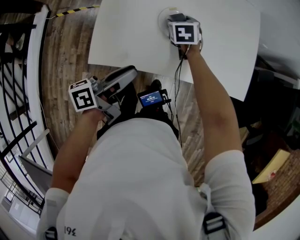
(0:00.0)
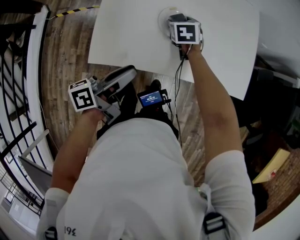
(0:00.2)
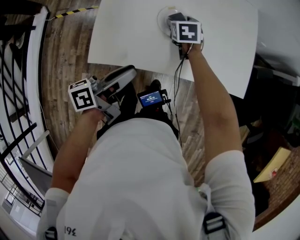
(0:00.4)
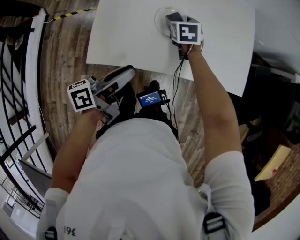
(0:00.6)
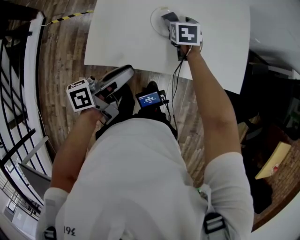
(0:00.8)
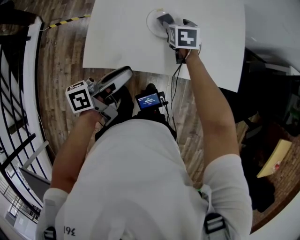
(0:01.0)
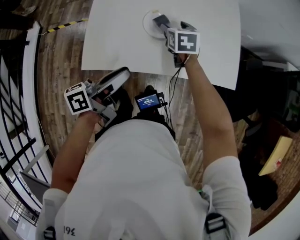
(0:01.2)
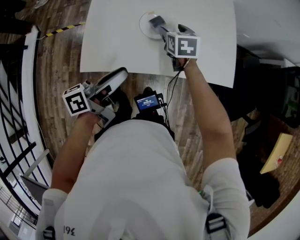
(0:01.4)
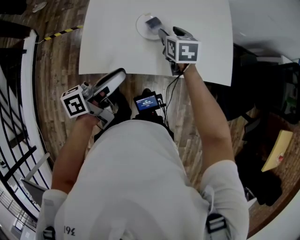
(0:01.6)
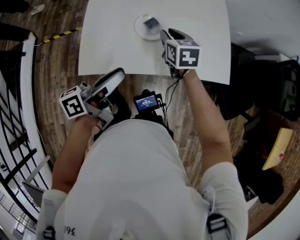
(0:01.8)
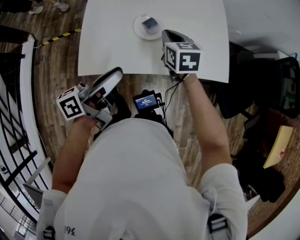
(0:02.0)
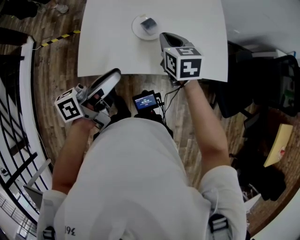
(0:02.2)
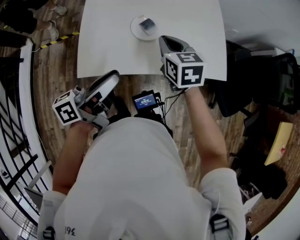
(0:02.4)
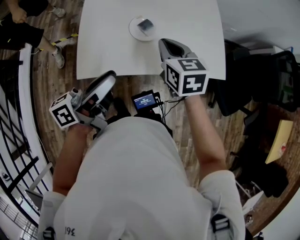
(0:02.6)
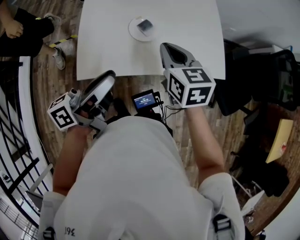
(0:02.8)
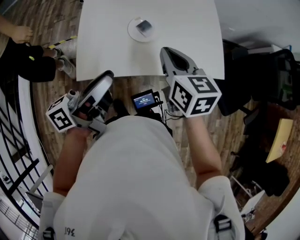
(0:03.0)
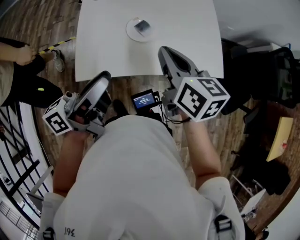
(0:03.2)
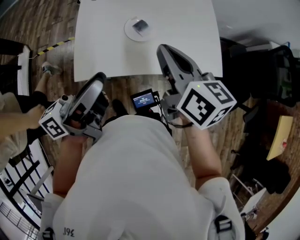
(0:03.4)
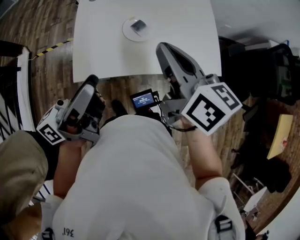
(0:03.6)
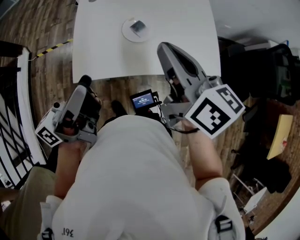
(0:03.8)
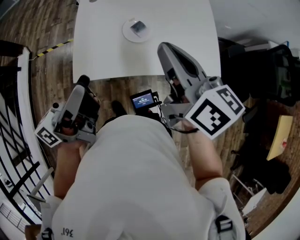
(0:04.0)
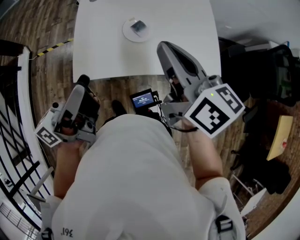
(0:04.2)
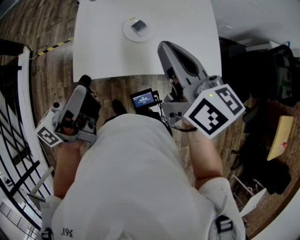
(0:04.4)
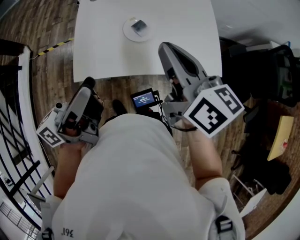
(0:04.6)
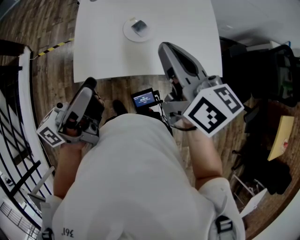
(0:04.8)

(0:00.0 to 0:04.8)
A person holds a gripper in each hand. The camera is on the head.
0:00.0 - 0:01.6: The right gripper moves upward, to the right and backward, about 15 cm; the left gripper moves approximately 5 cm.
0:01.6 - 0:03.2: The right gripper heads upward and backward, covering approximately 20 cm, swivels about 30 degrees, and closes up, while the left gripper shifts about 10 cm upward.
0:03.2 - 0:04.8: The right gripper is displaced upward by approximately 5 cm.

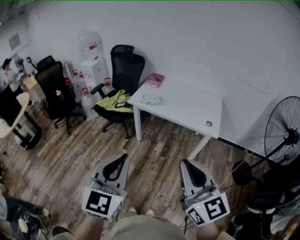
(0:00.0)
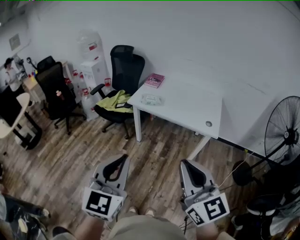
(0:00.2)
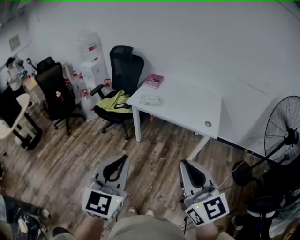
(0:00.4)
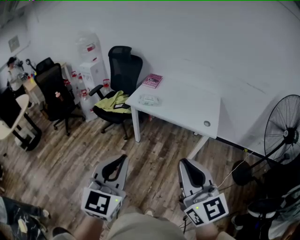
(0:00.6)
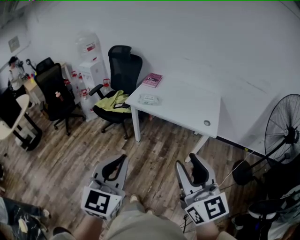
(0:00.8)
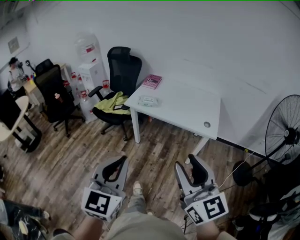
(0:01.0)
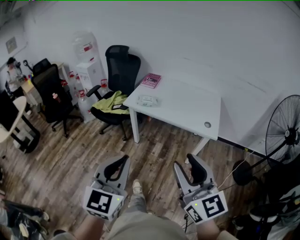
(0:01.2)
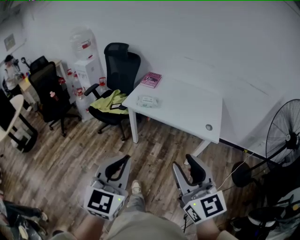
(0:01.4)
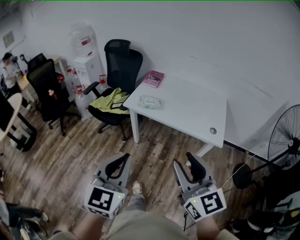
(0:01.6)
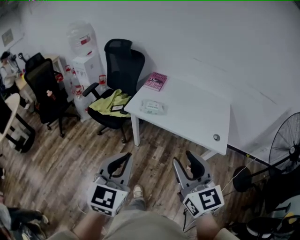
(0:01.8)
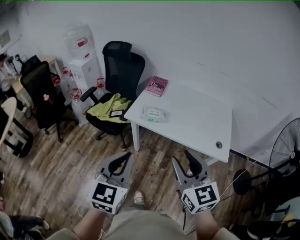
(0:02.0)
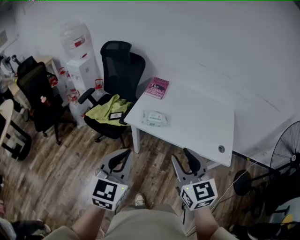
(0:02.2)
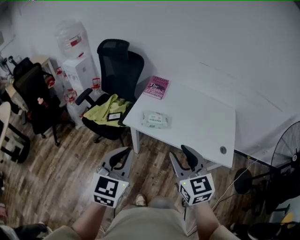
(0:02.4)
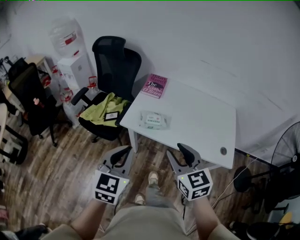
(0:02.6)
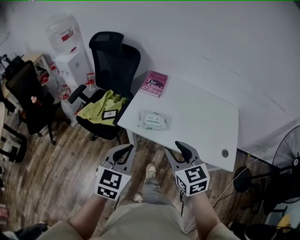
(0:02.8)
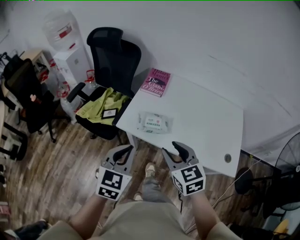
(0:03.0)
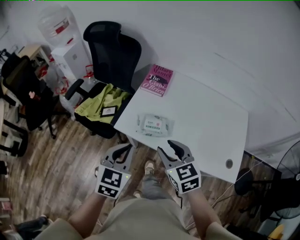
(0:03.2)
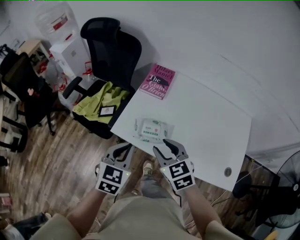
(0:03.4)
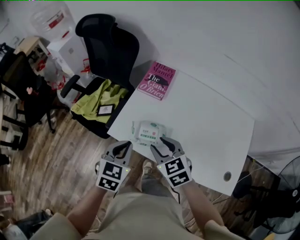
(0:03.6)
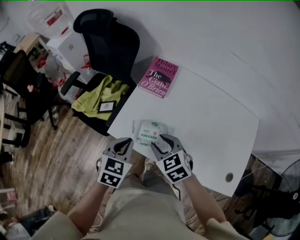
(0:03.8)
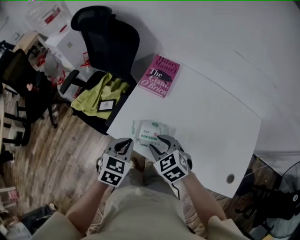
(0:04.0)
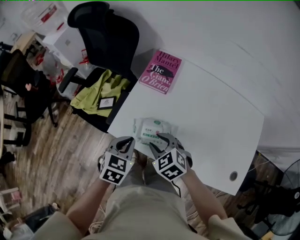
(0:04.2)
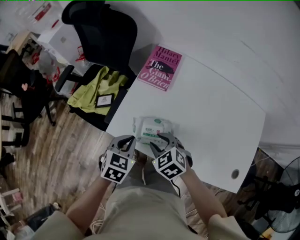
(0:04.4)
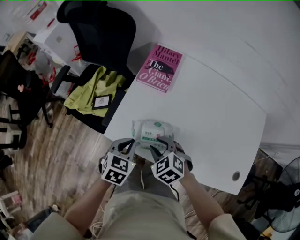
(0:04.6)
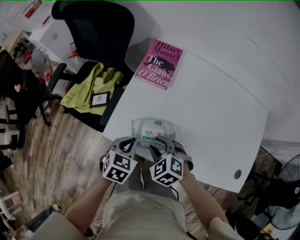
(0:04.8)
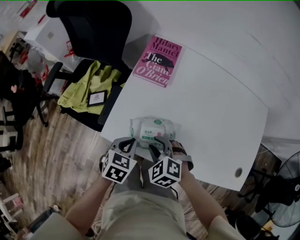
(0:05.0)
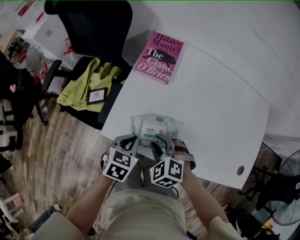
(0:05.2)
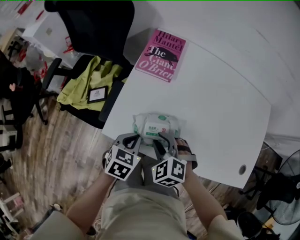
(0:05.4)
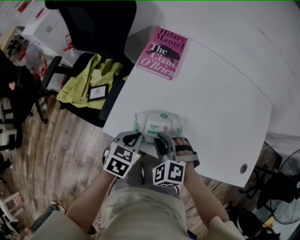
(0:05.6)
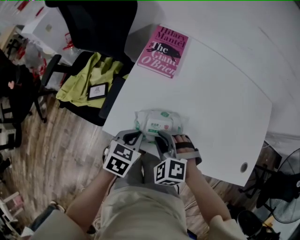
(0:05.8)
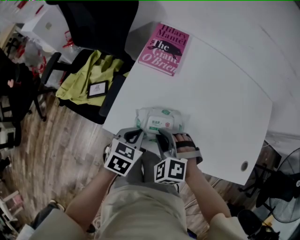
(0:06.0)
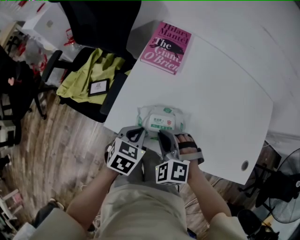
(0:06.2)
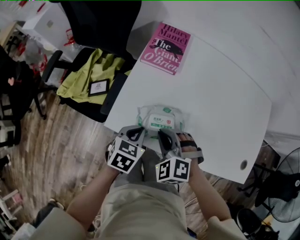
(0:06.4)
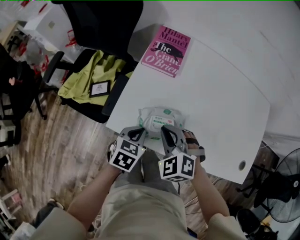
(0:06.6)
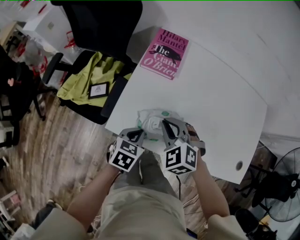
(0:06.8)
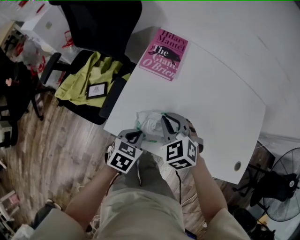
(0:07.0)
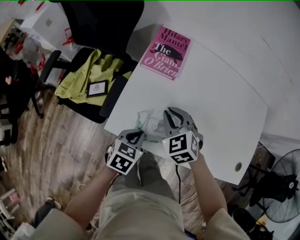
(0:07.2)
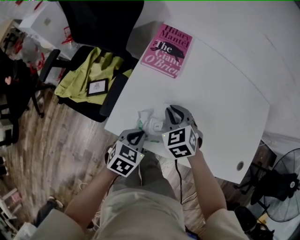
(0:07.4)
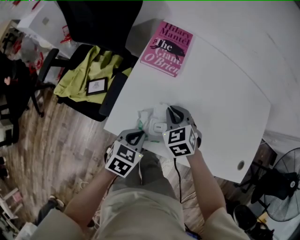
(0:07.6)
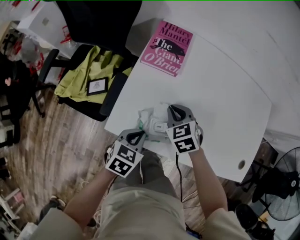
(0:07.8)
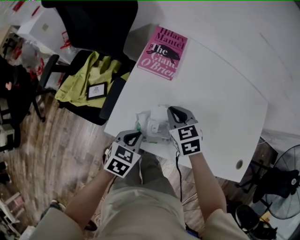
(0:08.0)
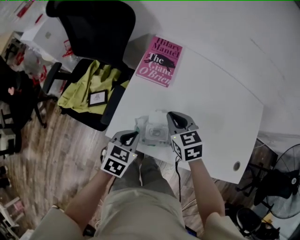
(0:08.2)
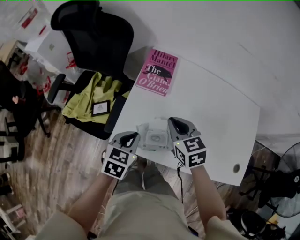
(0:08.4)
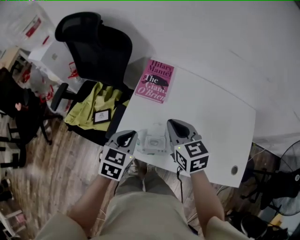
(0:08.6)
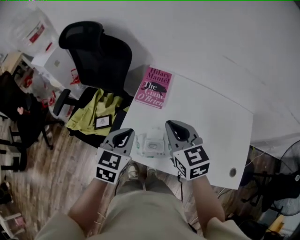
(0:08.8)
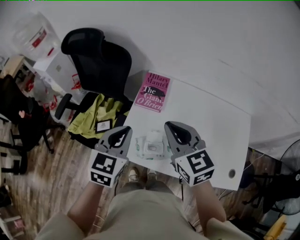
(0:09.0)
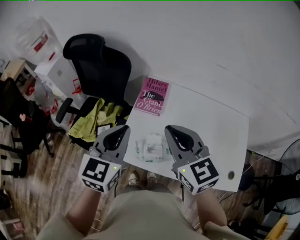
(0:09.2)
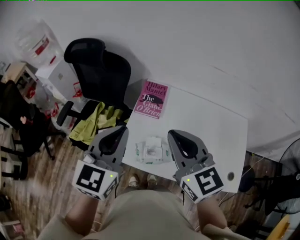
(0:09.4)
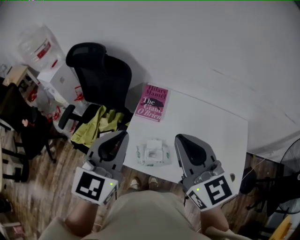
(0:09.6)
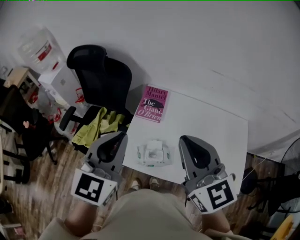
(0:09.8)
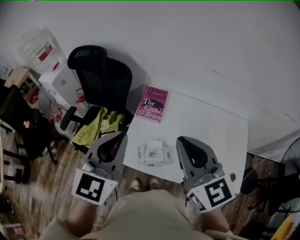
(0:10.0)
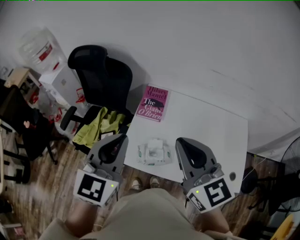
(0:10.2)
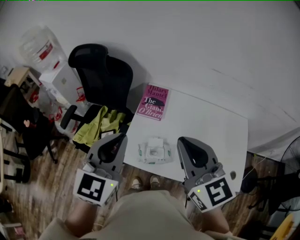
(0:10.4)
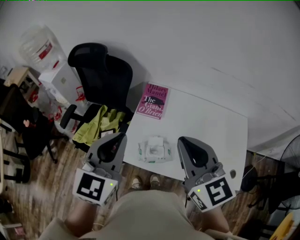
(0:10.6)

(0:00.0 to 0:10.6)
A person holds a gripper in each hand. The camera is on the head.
0:00.0 - 0:01.6: The grippers both shift forward by roughly 15 cm. The right gripper opens its fingers.
0:01.6 - 0:03.0: Both grippers are carried forward, approximately 40 cm. The right gripper travels downward by roughly 20 cm, and swivels approximately 30 degrees.
0:03.0 - 0:04.6: The grippers both shift downward and forward by about 30 cm. The right gripper turns by approximately 40 degrees, while the left gripper rotates roughly 30 degrees.
0:04.6 - 0:06.0: The left gripper heads downward, covering roughly 5 cm; the right gripper swivels roughly 30 degrees.
0:06.0 - 0:07.6: The right gripper moves forward, about 10 cm, and swivels about 40 degrees.
0:07.6 - 0:09.0: The grippers both shift upward by roughly 30 cm. The right gripper points its fingers roughly 30 degrees further upward. Meanwhile the left gripper swivels roughly 30 degrees.
0:09.0 - 0:10.6: The two grippers go roughly 15 cm upward and backward.

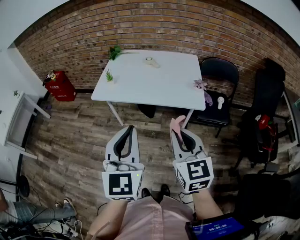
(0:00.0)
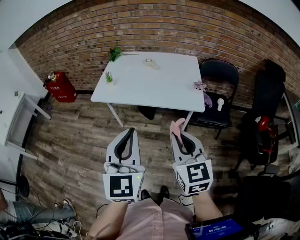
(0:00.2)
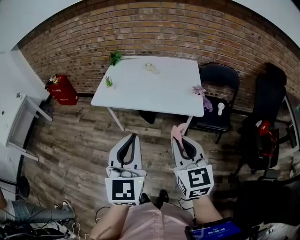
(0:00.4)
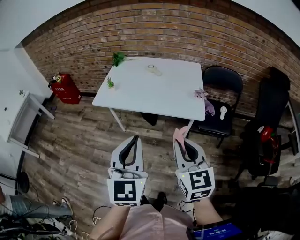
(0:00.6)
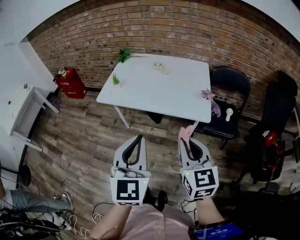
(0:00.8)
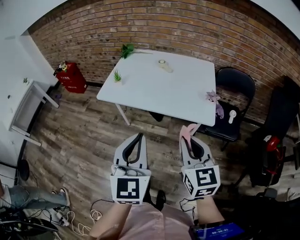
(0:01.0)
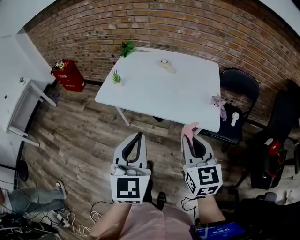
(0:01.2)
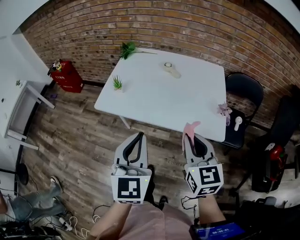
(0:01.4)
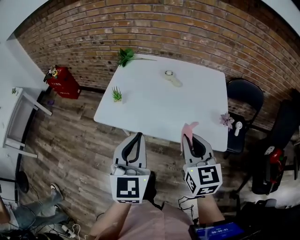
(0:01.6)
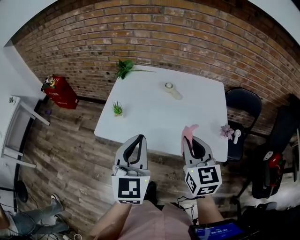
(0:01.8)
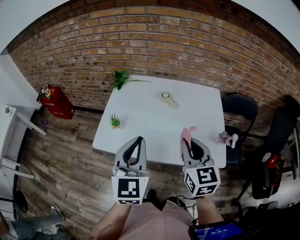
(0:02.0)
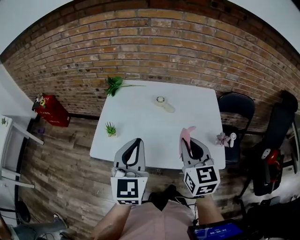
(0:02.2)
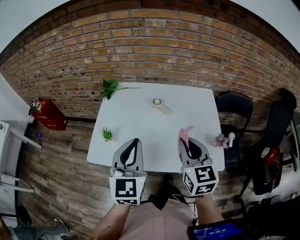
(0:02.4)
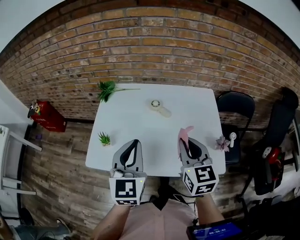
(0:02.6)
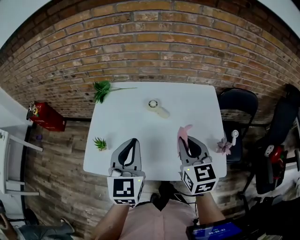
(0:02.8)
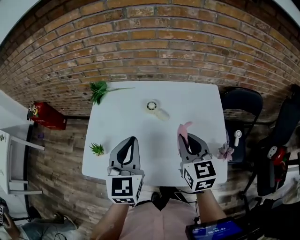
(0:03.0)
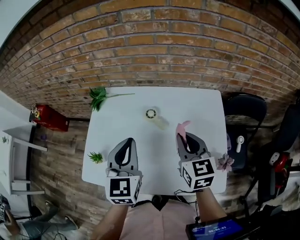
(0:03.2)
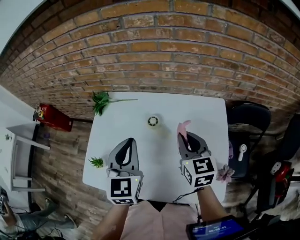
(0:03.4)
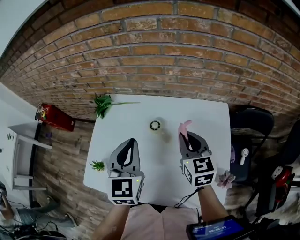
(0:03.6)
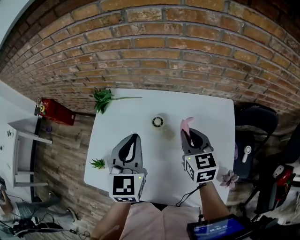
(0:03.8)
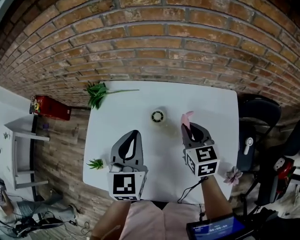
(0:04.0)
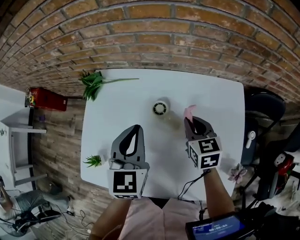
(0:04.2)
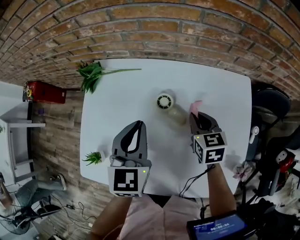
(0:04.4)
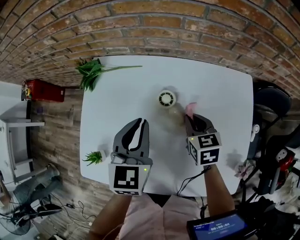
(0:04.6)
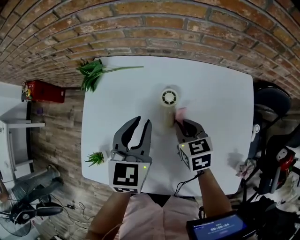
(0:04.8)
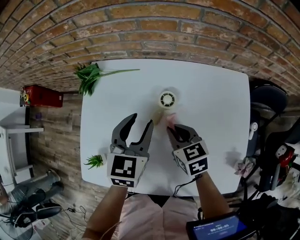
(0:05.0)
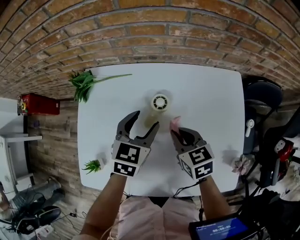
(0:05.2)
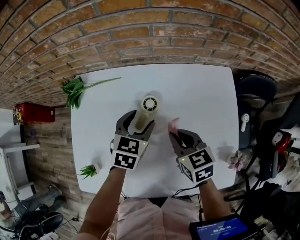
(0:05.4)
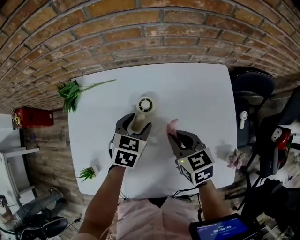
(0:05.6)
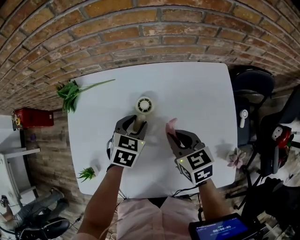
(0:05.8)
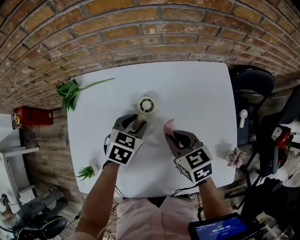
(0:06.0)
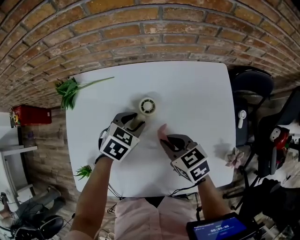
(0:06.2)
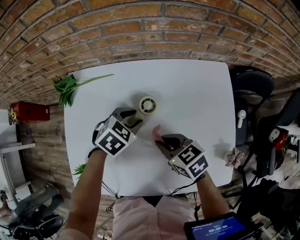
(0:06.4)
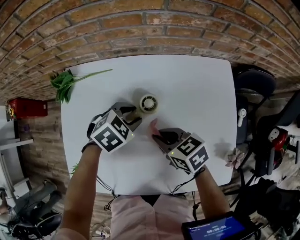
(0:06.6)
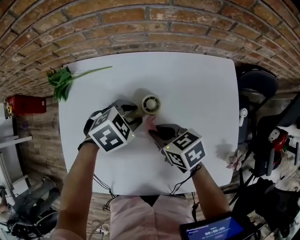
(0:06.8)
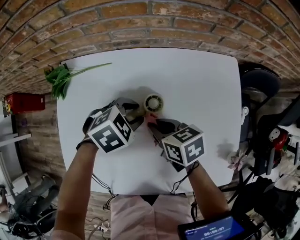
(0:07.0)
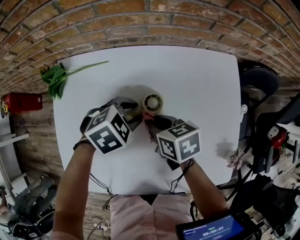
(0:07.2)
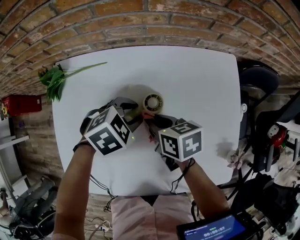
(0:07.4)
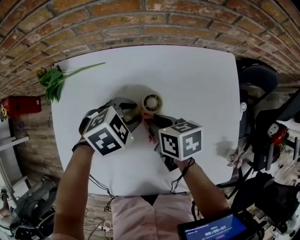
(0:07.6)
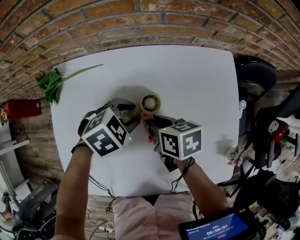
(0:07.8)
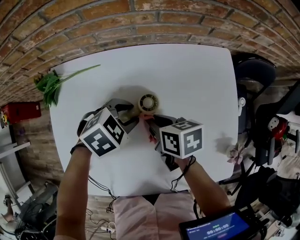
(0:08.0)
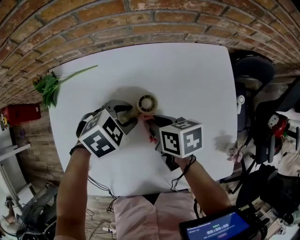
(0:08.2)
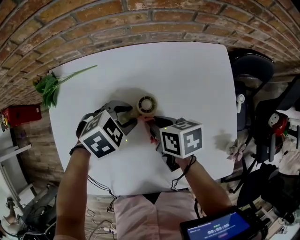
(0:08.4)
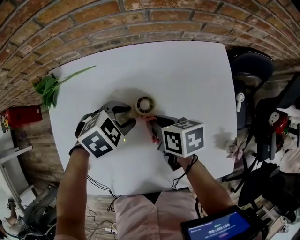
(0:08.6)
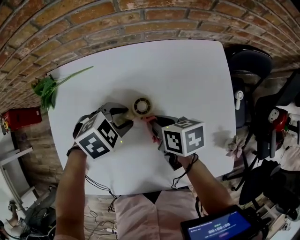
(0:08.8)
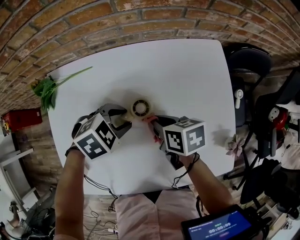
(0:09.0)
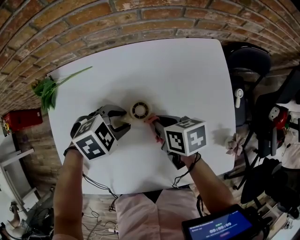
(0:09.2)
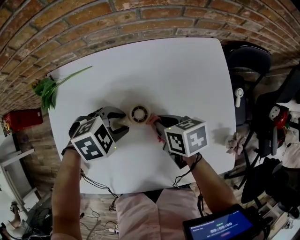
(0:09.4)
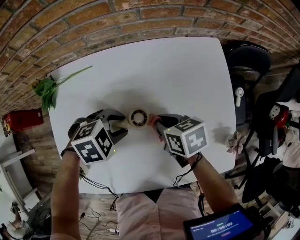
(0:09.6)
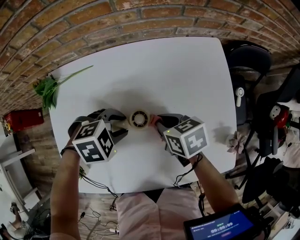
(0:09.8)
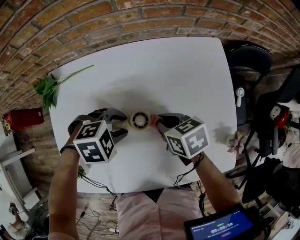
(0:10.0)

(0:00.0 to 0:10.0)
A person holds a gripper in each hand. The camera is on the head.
0:00.0 - 0:01.4: The left gripper heads forward and downward, covering some 20 cm, while the right gripper travels forward by approximately 20 cm.
0:01.4 - 0:02.8: Both grippers travel together forward, approximately 25 cm.
0:02.8 - 0:04.2: The two grippers go about 25 cm forward and downward.
0:04.2 - 0:05.8: The right gripper travels backward by about 5 cm, and moves roughly 10 cm to the left and comes back; the left gripper travels downward by approximately 15 cm, turns by some 40 degrees, and opens.
0:05.8 - 0:07.2: The right gripper shifts by roughly 10 cm, and rotates roughly 20 degrees, while the left gripper rotates roughly 40 degrees.
0:07.2 - 0:08.6: There are only small adjustments of the grippers.
0:08.6 - 0:10.0: The left gripper ends up some 5 cm from where it was, and turns by about 20 degrees.
